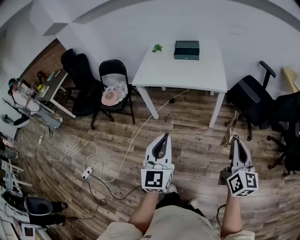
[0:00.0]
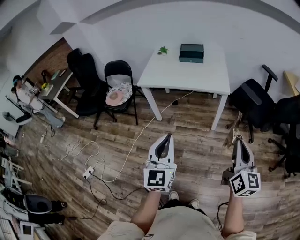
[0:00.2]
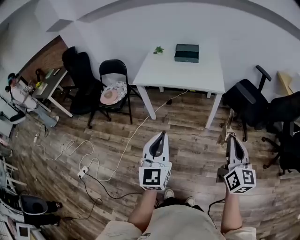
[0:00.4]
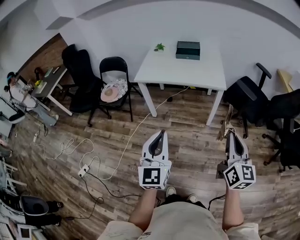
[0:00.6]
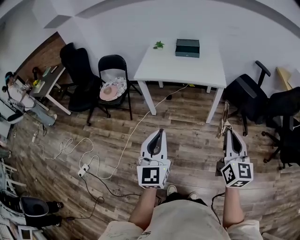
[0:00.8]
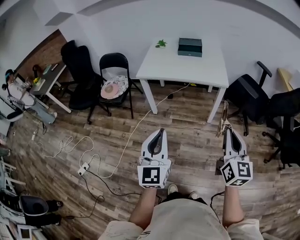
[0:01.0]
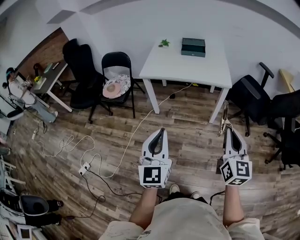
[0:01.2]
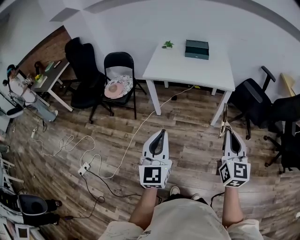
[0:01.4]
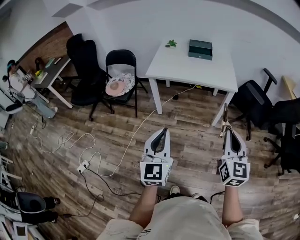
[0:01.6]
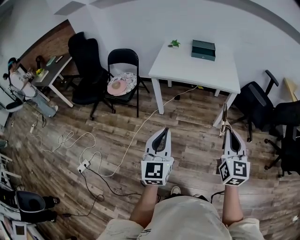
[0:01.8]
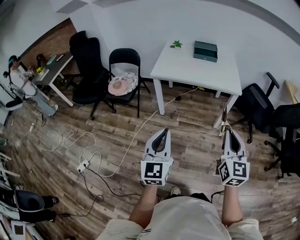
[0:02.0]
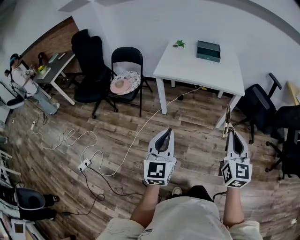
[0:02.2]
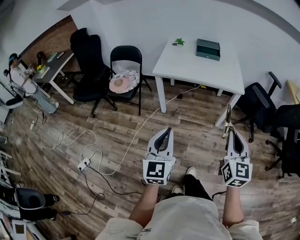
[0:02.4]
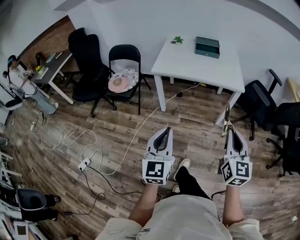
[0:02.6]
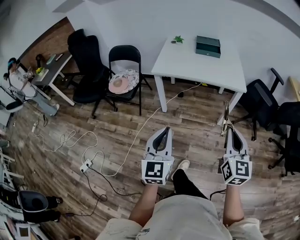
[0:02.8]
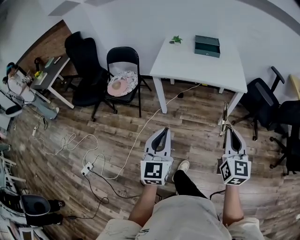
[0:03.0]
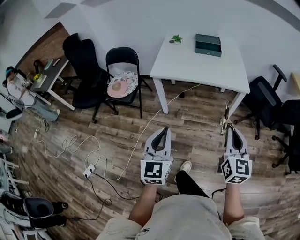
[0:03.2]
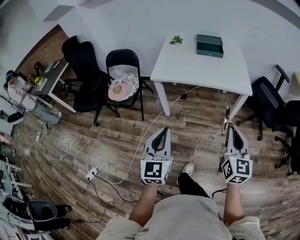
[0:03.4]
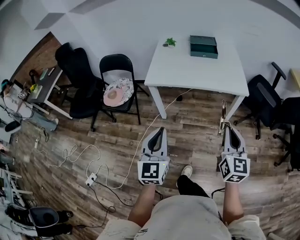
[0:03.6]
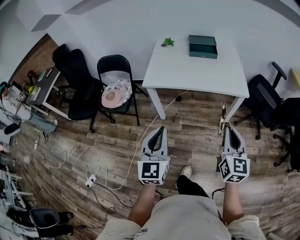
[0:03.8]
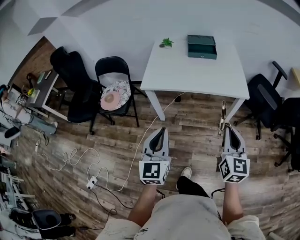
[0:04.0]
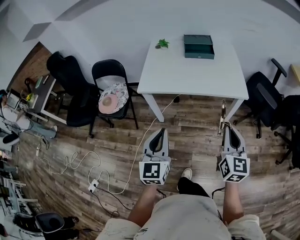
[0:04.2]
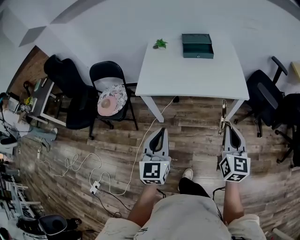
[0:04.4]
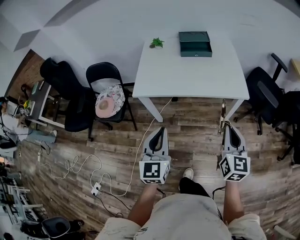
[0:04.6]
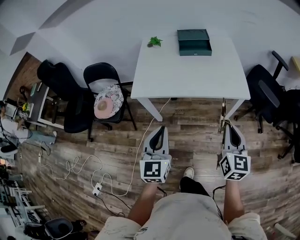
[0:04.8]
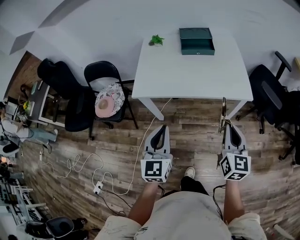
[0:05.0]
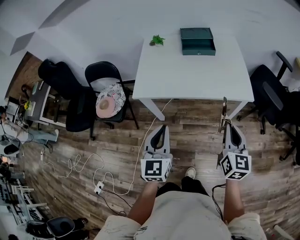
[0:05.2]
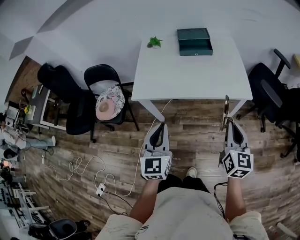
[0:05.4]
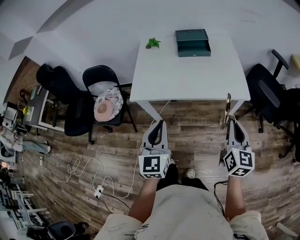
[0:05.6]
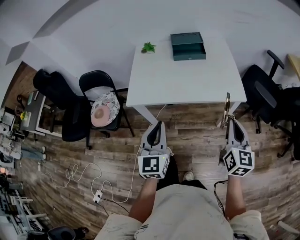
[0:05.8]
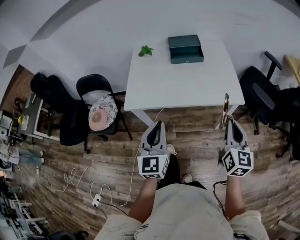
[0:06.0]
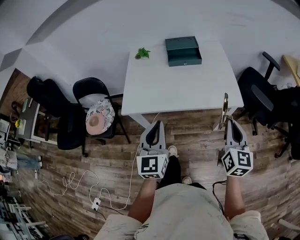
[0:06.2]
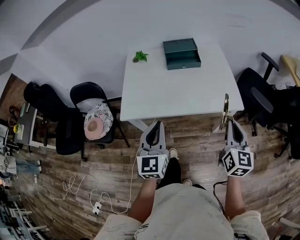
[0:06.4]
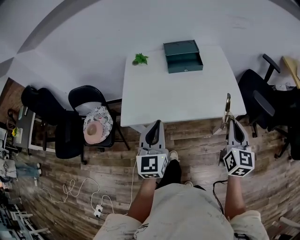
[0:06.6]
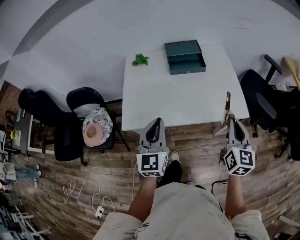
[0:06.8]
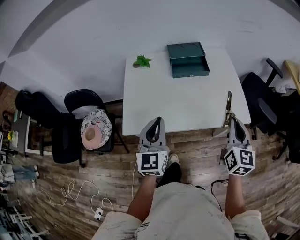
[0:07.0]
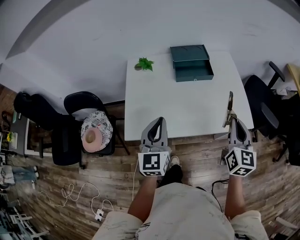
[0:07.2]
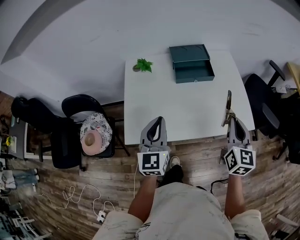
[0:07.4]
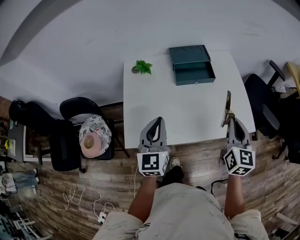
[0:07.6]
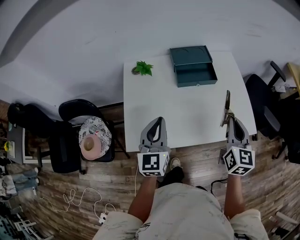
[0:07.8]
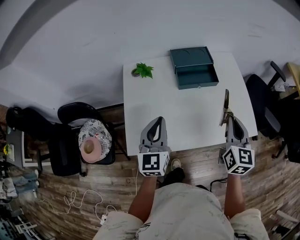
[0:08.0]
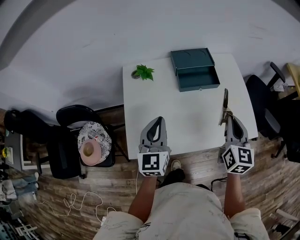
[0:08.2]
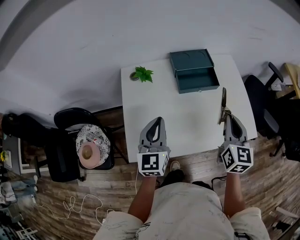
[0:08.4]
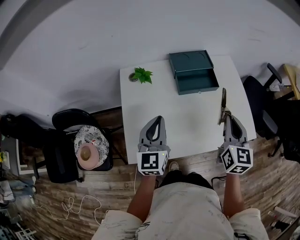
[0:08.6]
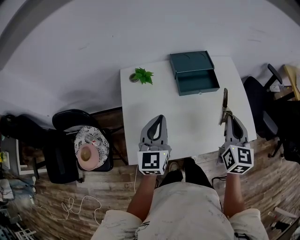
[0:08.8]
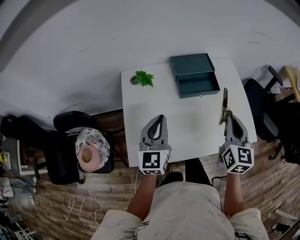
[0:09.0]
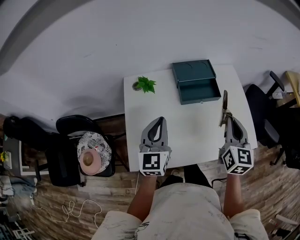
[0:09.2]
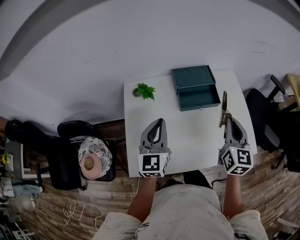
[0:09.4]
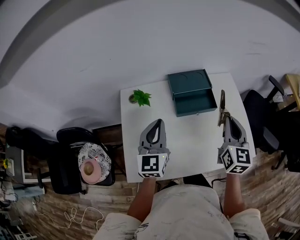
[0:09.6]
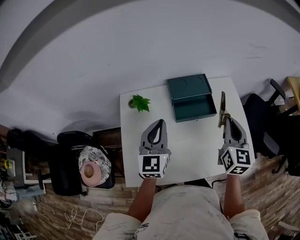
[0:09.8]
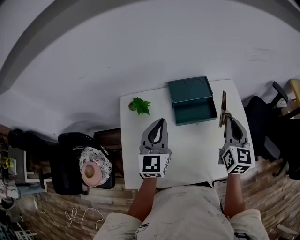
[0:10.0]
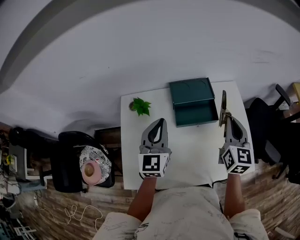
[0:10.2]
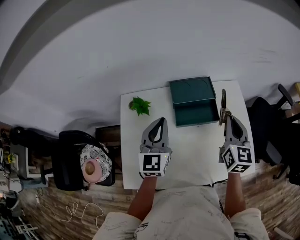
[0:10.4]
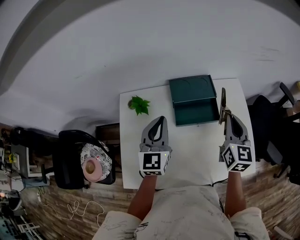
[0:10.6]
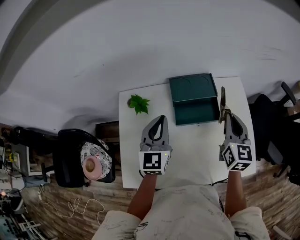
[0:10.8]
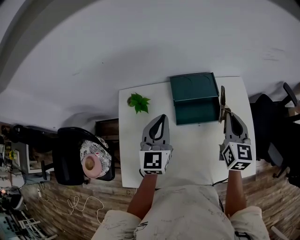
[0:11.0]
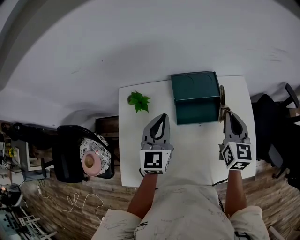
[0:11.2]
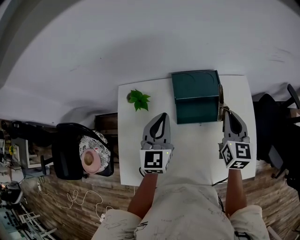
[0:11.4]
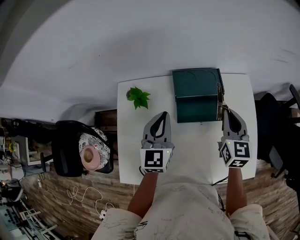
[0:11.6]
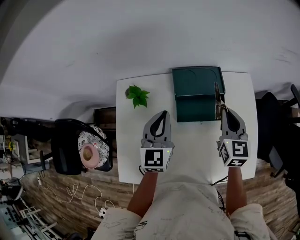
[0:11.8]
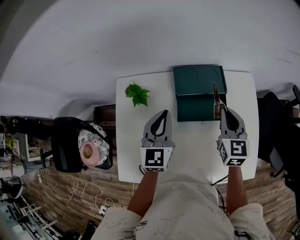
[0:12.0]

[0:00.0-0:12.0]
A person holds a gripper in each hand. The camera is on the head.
0:00.0 to 0:01.6: Both grippers travel together to the left, approximately 15 cm. The right gripper turns by some 20 degrees.
0:01.6 to 0:03.0: The grippers both shift forward by roughly 5 cm.
0:03.0 to 0:04.4: The two grippers go approximately 20 cm forward.
0:04.4 to 0:06.0: Both grippers move forward, roughly 10 cm.
0:06.0 to 0:07.6: The grippers both shift forward and to the left by roughly 25 cm.
0:07.6 to 0:09.0: The right gripper moves forward and to the left, about 10 cm; the left gripper goes about 10 cm forward.
0:09.0 to 0:10.4: Both grippers move forward, some 15 cm.
0:10.4 to 0:12.0: The grippers both shift downward and forward by about 10 cm.

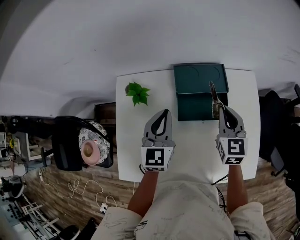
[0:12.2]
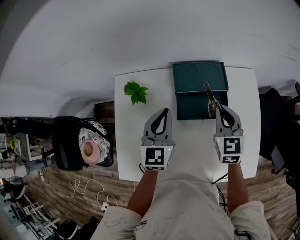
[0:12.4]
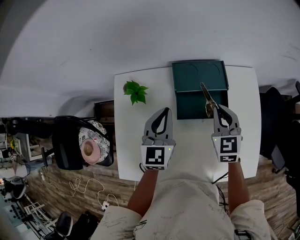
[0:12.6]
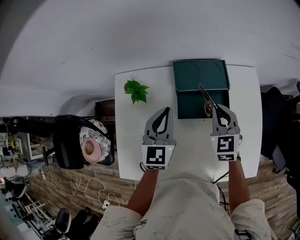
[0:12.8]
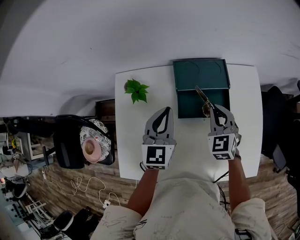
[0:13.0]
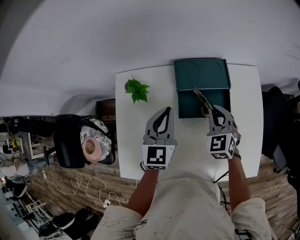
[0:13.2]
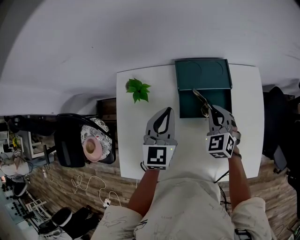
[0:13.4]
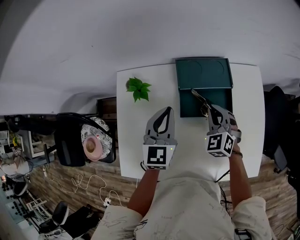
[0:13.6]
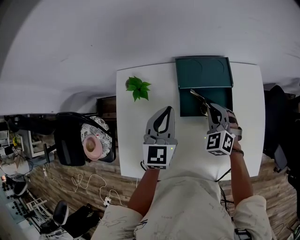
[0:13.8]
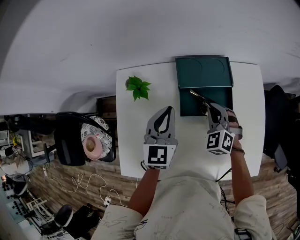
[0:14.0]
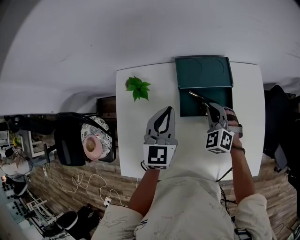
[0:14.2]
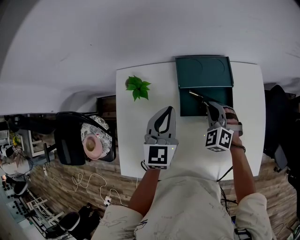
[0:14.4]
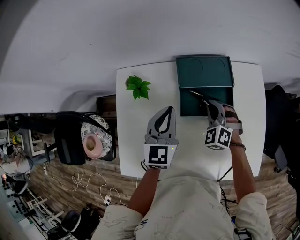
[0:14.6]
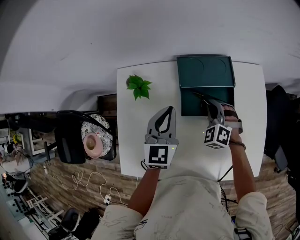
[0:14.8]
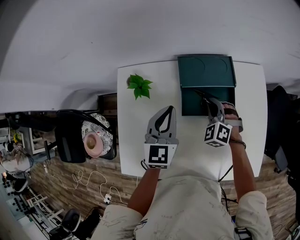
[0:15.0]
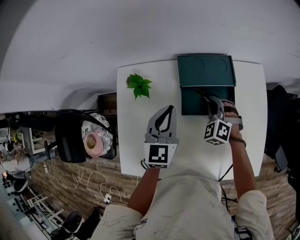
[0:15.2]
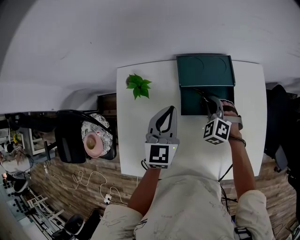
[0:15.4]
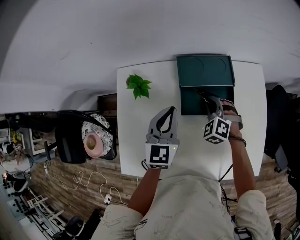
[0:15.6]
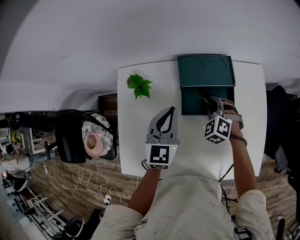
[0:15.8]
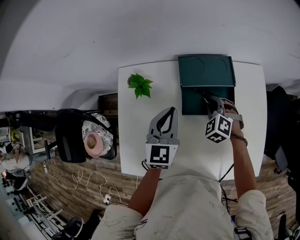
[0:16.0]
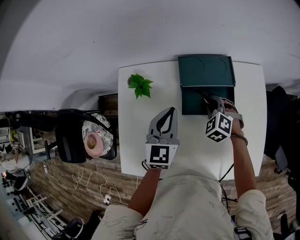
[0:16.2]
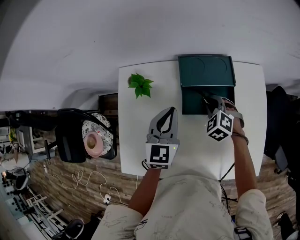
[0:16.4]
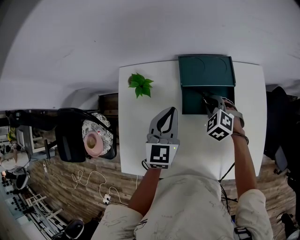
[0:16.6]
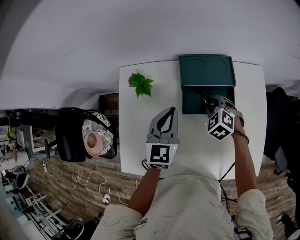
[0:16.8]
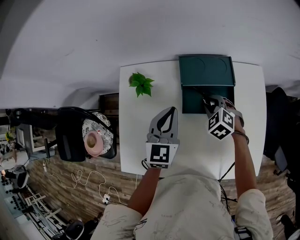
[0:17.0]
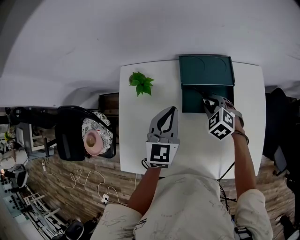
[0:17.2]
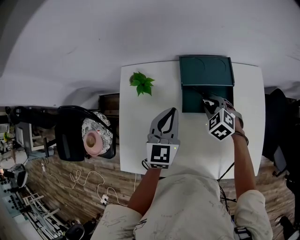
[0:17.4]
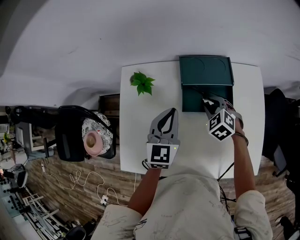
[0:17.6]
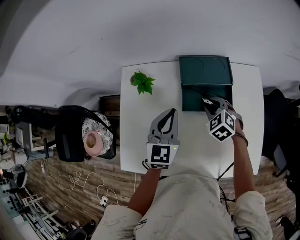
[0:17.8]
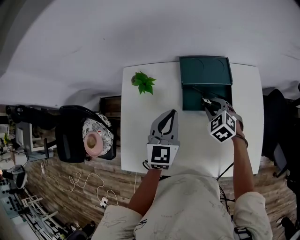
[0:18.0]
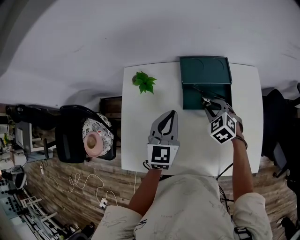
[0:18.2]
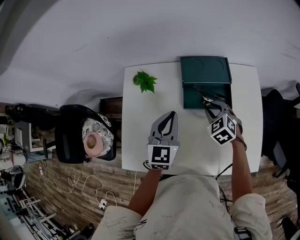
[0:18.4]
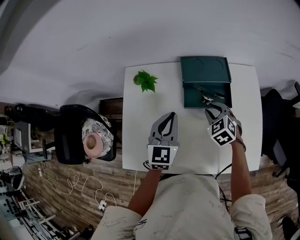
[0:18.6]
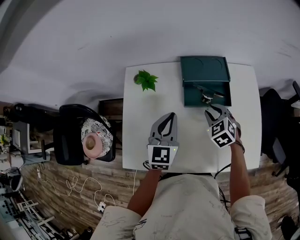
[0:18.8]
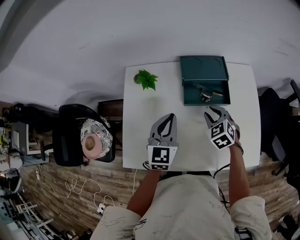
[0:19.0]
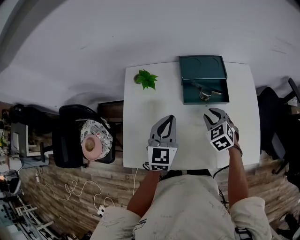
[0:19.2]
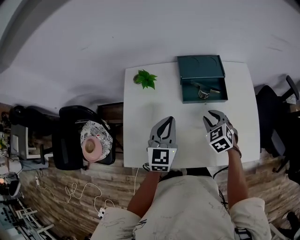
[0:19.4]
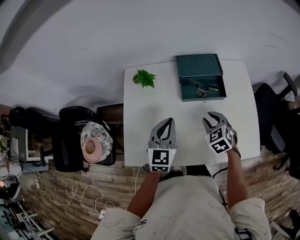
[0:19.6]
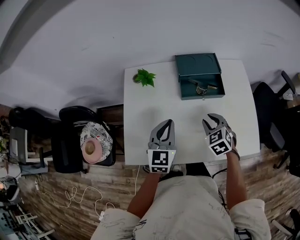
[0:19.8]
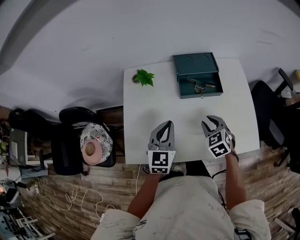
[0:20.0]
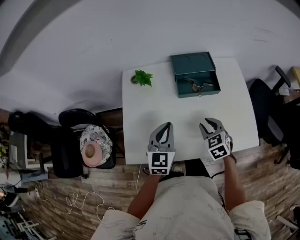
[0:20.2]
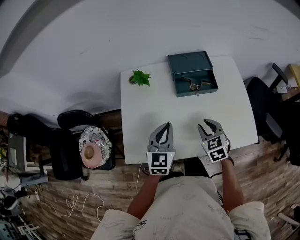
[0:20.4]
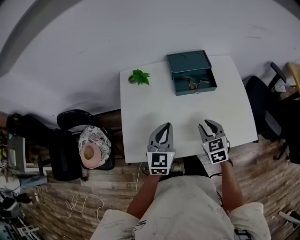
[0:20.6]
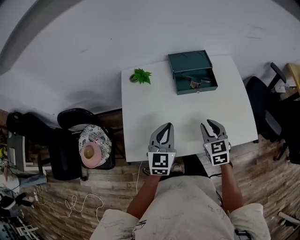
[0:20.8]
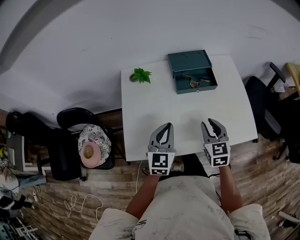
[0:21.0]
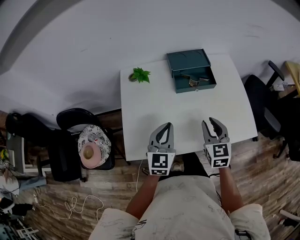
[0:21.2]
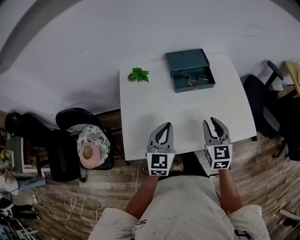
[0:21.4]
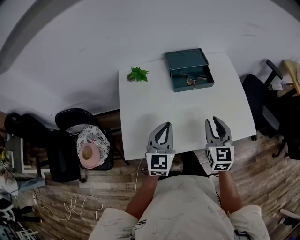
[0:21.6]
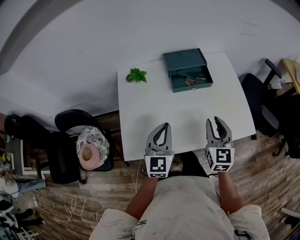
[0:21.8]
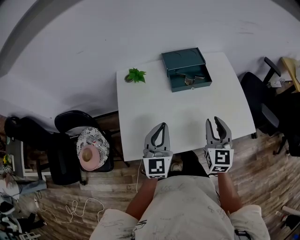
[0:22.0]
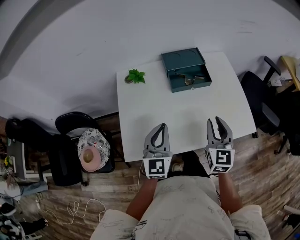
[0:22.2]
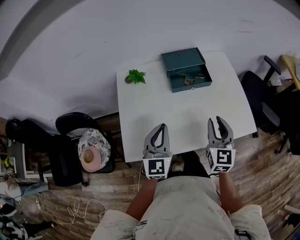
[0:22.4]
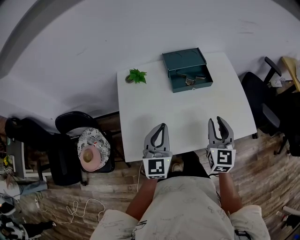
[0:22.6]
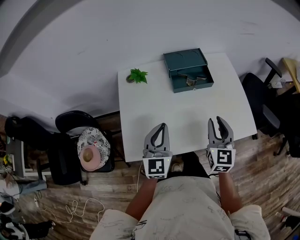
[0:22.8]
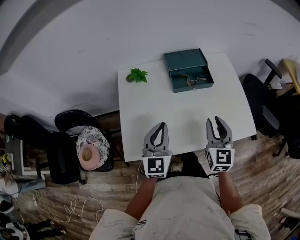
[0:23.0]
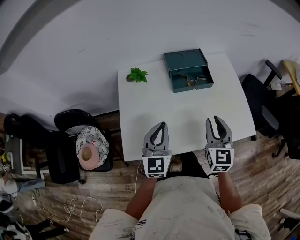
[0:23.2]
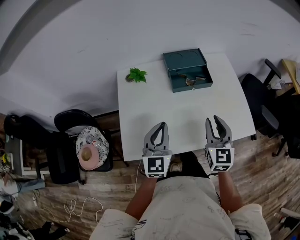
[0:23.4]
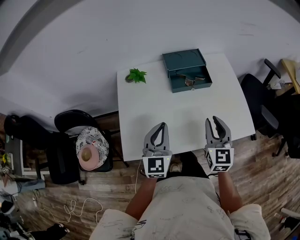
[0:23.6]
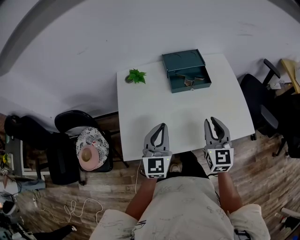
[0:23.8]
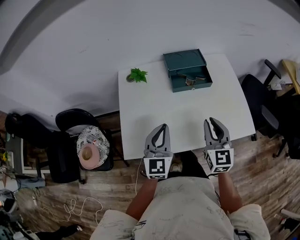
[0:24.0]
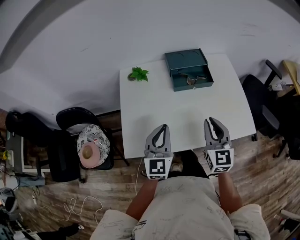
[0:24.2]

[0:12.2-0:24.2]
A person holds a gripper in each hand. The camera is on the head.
0:12.2 to 0:13.8: The right gripper moves downward and to the left, roughly 10 cm, and swivels roughly 40 degrees.
0:13.8 to 0:15.2: The grippers stay close to where they were, moving slightly.
0:15.2 to 0:16.6: There are only small adjustments of the grippers.
0:16.6 to 0:18.2: The left gripper moves roughly 5 cm. Meanwhile the right gripper shifts by about 5 cm.
0:18.2 to 0:19.8: The two grippers go about 15 cm backward.
0:19.8 to 0:21.2: The right gripper goes some 10 cm backward and upward, and turns by some 30 degrees; the left gripper moves backward, roughly 5 cm.
0:21.2 to 0:22.6: The right gripper changes place by approximately 5 cm.
0:22.6 to 0:24.2: The grippers stay close to where they were, moving slightly.
